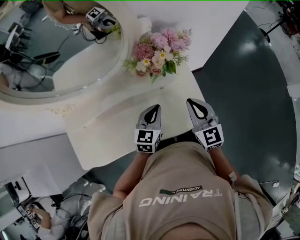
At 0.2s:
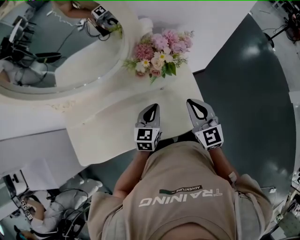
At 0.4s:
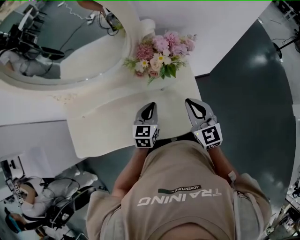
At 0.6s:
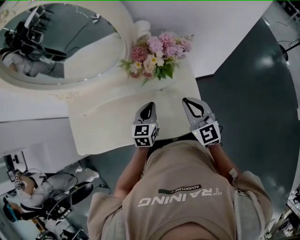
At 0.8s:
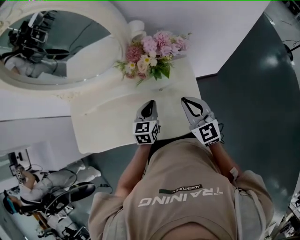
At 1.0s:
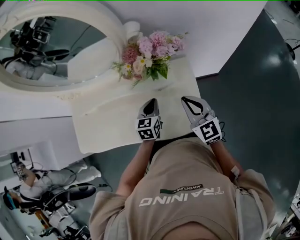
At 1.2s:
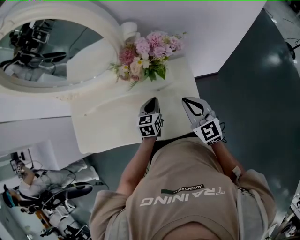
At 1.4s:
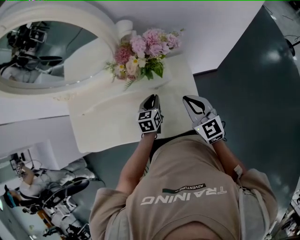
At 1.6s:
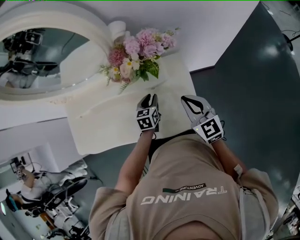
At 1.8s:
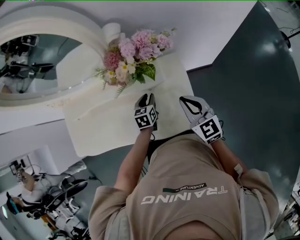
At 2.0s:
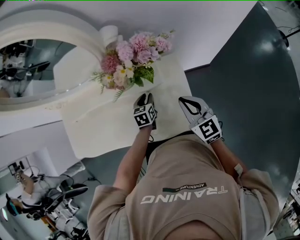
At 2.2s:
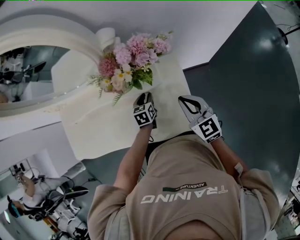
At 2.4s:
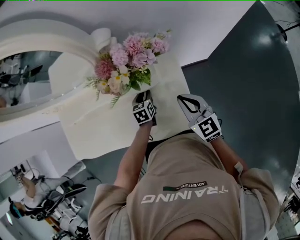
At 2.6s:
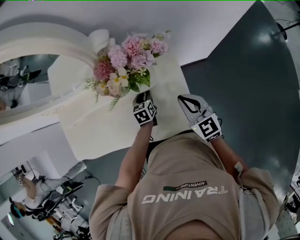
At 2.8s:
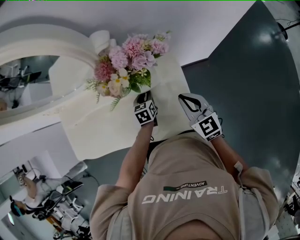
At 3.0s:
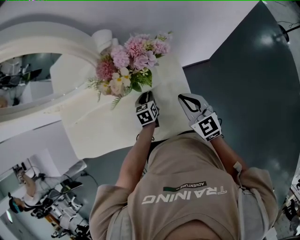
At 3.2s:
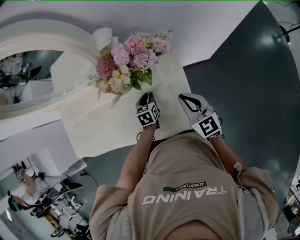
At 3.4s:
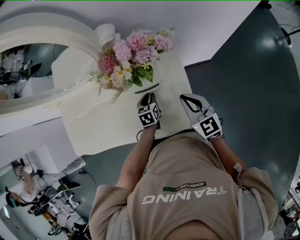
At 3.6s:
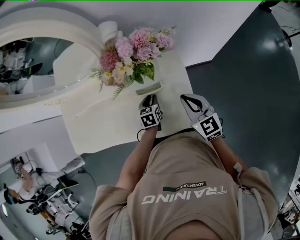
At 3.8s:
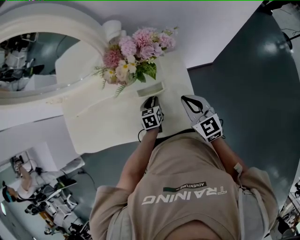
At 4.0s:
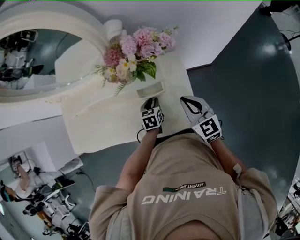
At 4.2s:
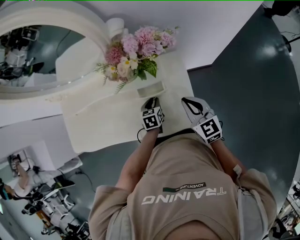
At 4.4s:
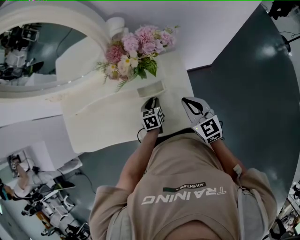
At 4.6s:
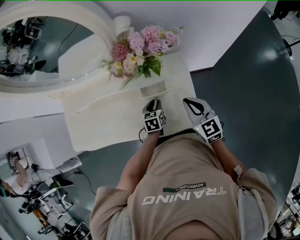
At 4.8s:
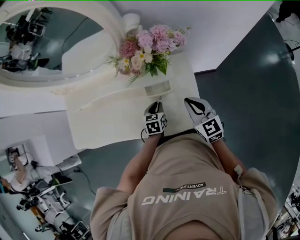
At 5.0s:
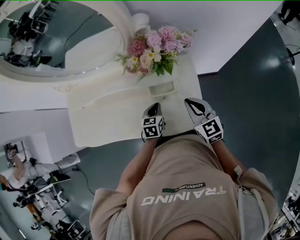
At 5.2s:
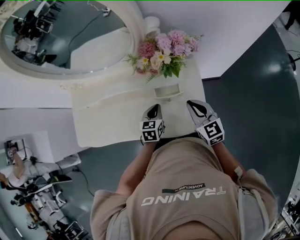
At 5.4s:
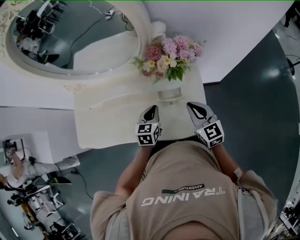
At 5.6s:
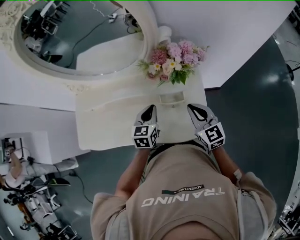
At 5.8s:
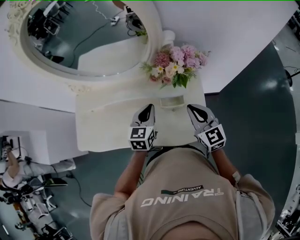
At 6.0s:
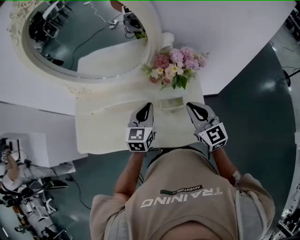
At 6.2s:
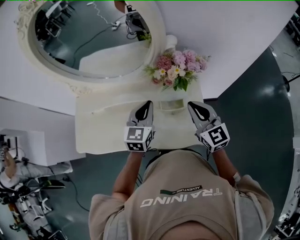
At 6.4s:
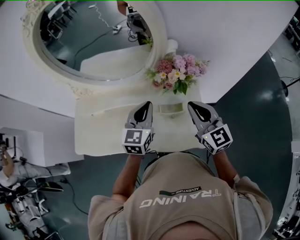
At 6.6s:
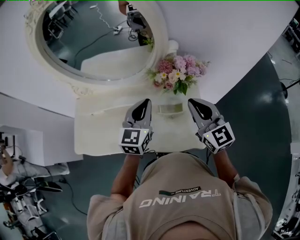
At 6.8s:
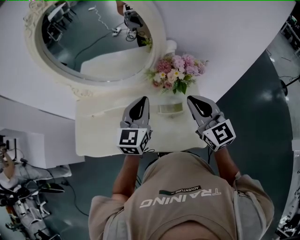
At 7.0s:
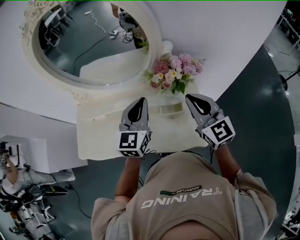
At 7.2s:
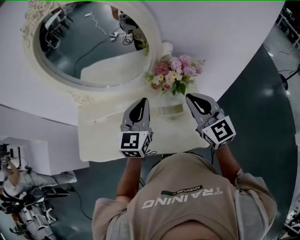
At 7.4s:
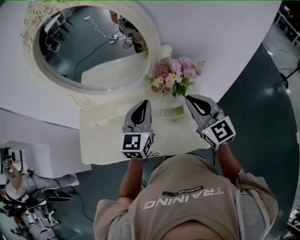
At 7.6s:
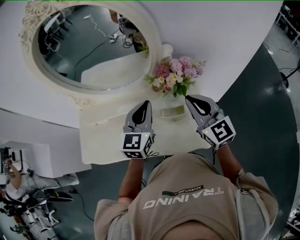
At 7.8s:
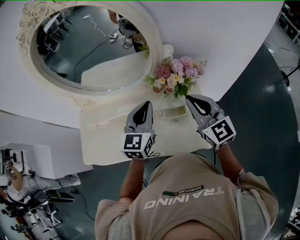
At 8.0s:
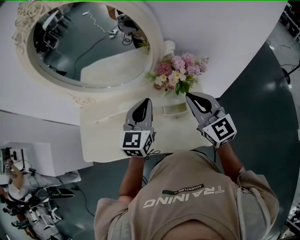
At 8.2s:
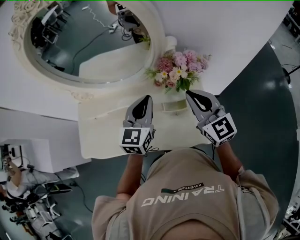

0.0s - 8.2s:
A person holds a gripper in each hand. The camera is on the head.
0.0s - 1.6s: The right gripper is displaced to the right by approximately 5 cm, while the left gripper heads downward and forward, covering roughly 15 cm, swivels about 30 degrees, and opens.
1.6s - 3.2s: The left gripper ends up about 5 cm from where it was.
3.2s - 5.0s: The left gripper goes approximately 5 cm backward, and closes; the right gripper changes place by about 5 cm.
5.0s - 6.6s: The left gripper goes approximately 30 cm upward, and angles its fingers upward, by approximately 30 degrees. The right gripper goes some 20 cm upward.
6.6s - 8.2s: There are only small adjustments of the grippers.

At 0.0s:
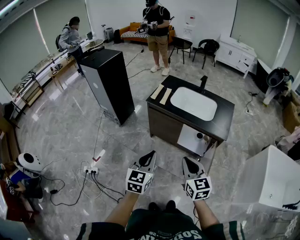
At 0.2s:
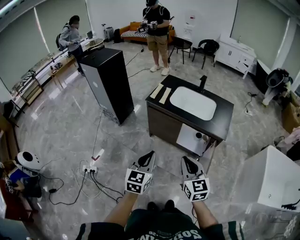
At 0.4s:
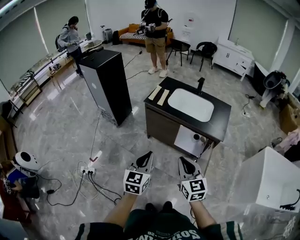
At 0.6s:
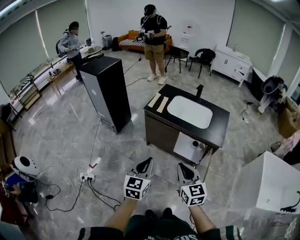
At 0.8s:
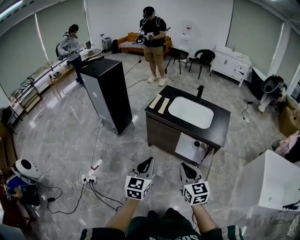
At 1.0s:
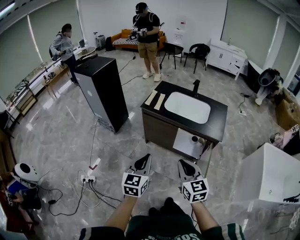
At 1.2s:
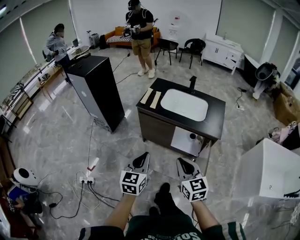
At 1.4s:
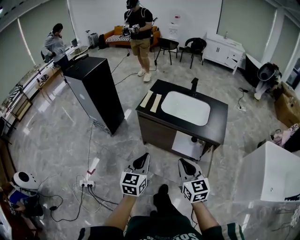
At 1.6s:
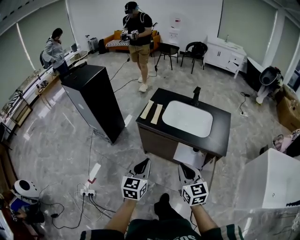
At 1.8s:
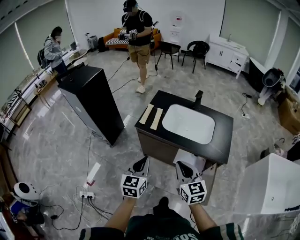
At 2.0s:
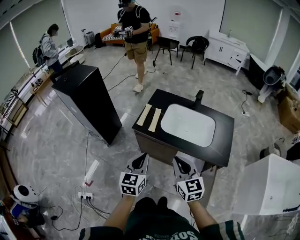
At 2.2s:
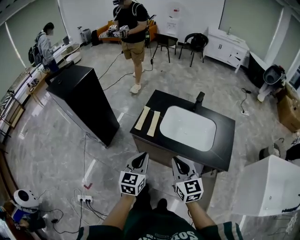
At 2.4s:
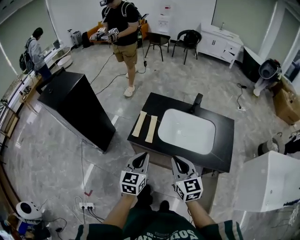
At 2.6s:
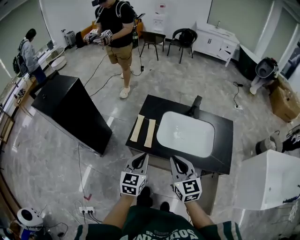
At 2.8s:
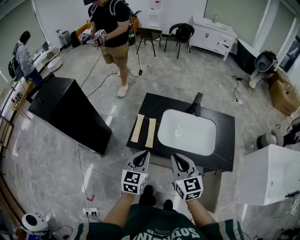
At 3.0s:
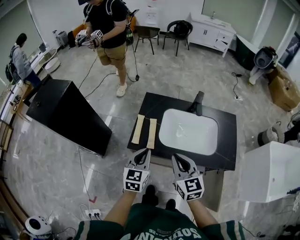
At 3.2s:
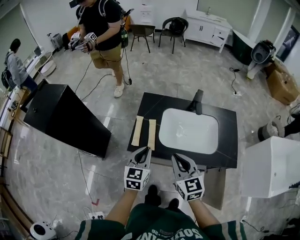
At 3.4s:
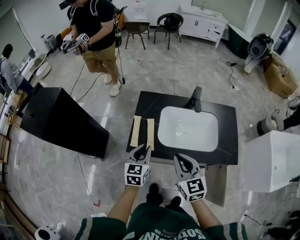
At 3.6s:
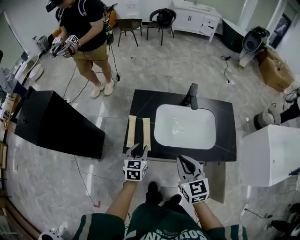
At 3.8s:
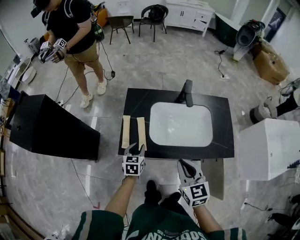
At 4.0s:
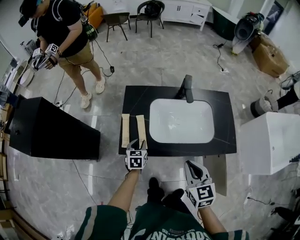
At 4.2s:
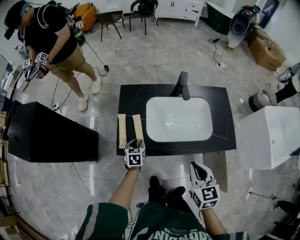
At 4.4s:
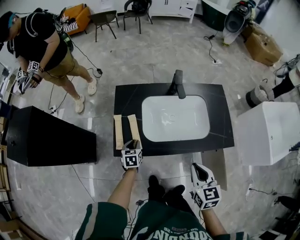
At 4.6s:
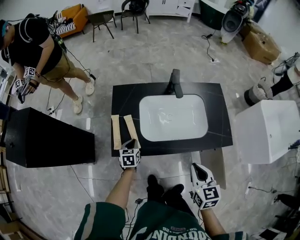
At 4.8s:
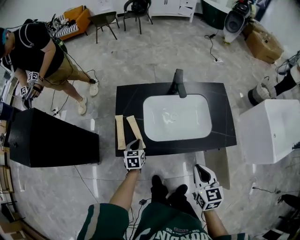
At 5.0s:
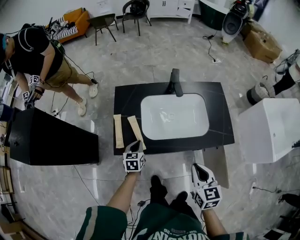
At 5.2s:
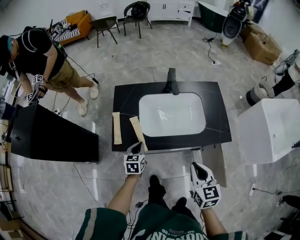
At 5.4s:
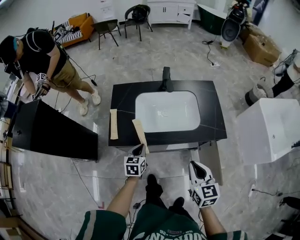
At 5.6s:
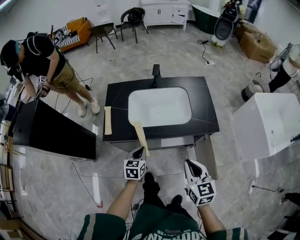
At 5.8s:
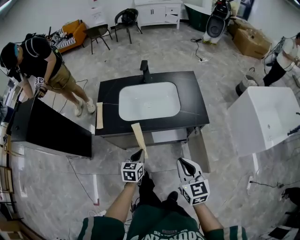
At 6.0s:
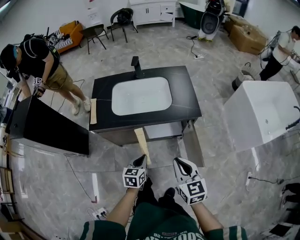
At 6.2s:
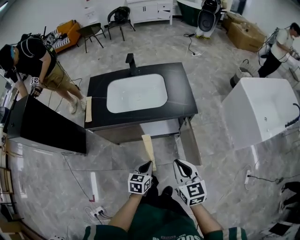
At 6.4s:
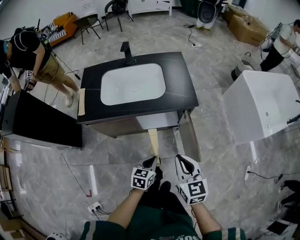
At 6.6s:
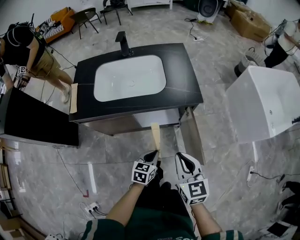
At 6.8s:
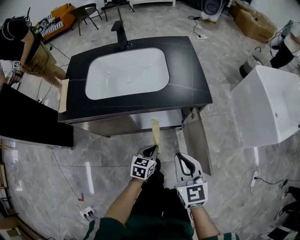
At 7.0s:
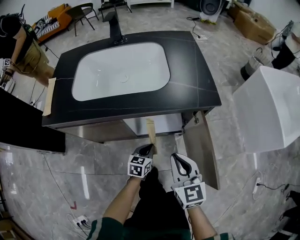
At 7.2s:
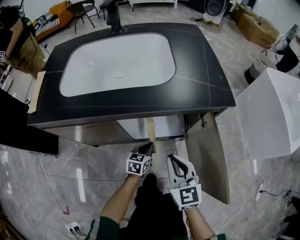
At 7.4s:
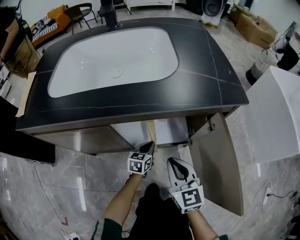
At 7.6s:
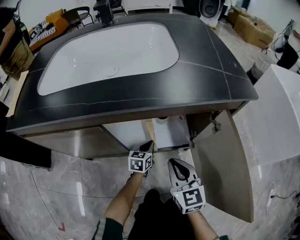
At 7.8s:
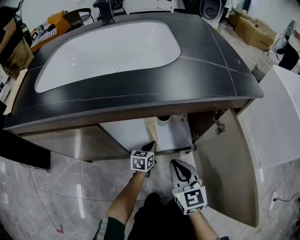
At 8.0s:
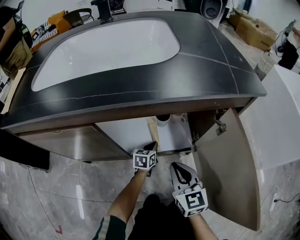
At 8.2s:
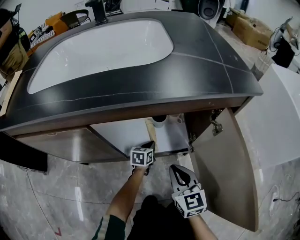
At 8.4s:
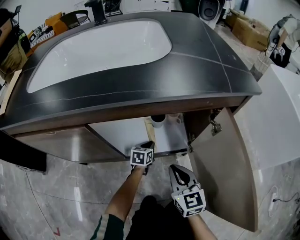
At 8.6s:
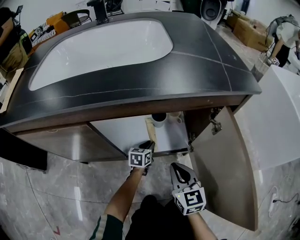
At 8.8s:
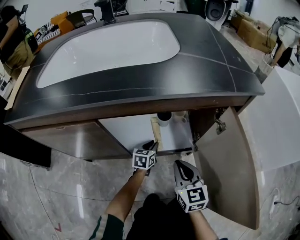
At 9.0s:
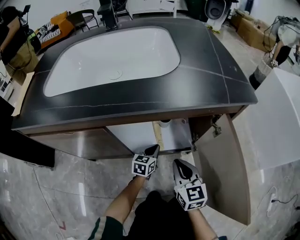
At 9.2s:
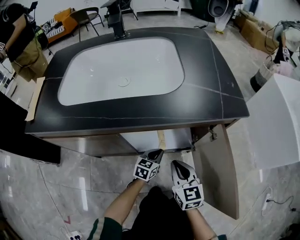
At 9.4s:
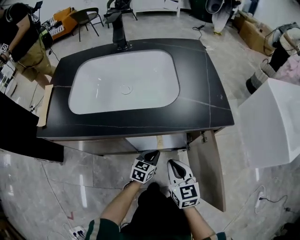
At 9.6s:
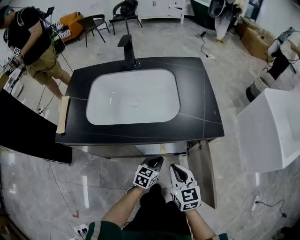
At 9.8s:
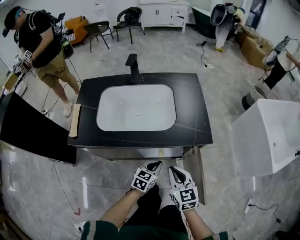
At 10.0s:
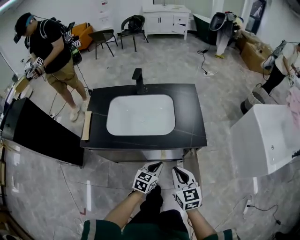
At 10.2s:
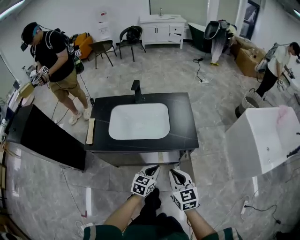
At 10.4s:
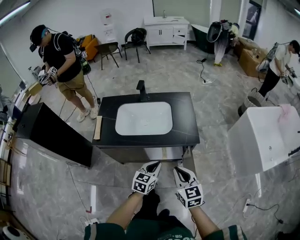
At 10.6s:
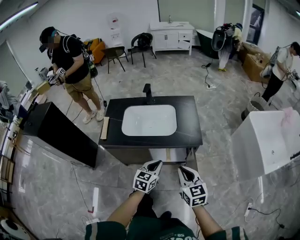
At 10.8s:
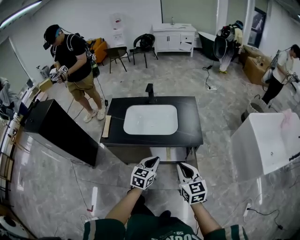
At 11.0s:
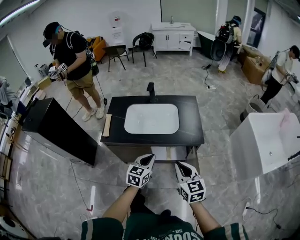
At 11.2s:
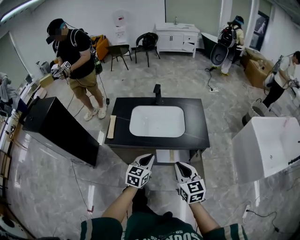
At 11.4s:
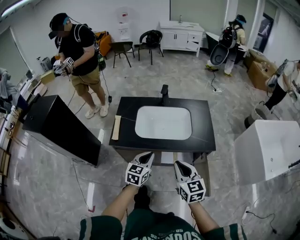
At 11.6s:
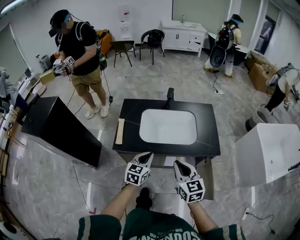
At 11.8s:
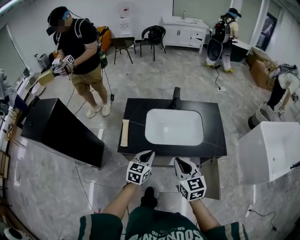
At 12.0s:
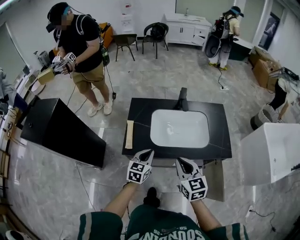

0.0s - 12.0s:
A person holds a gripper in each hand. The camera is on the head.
0.0s - 1.6s: The two grippers go about 15 cm forward.
1.6s - 3.0s: The two grippers go about 35 cm forward.
3.0s - 4.4s: The left gripper moves downward and forward, approximately 30 cm, changes its angle by approximately 30 degrees, and opens its fingers; the right gripper heads to the right and downward, covering some 15 cm, and rotates some 30 degrees.
4.4s - 6.0s: The right gripper travels backward and to the right by some 30 cm, while the left gripper travels backward and to the right by roughly 40 cm, and closes up.
6.0s - 7.6s: The right gripper is displaced downward by roughly 50 cm; the left gripper shifts about 60 cm downward and forward.
7.6s - 9.0s: The left gripper moves roughly 10 cm downward and comes back.
9.0s - 10.4s: Both grippers move upward, some 60 cm.
10.4s - 12.0s: The two grippers go about 35 cm to the left and forward.

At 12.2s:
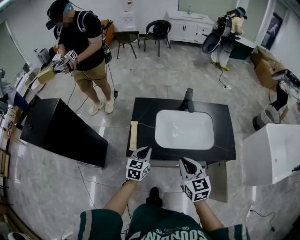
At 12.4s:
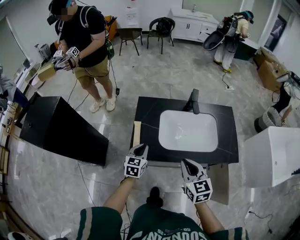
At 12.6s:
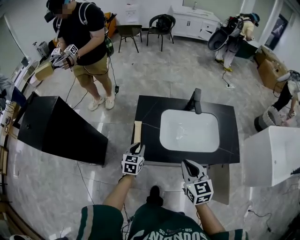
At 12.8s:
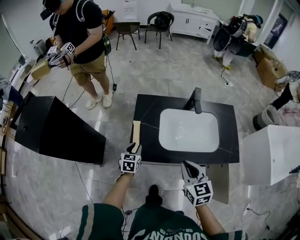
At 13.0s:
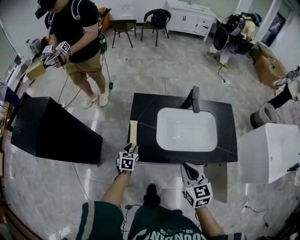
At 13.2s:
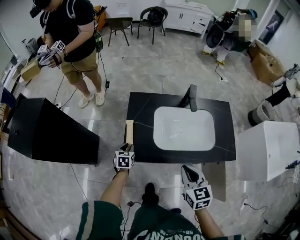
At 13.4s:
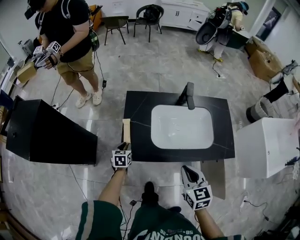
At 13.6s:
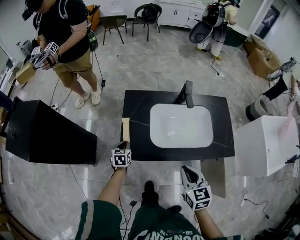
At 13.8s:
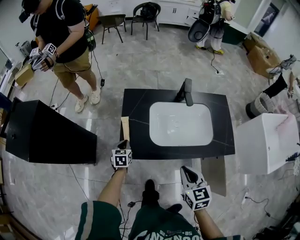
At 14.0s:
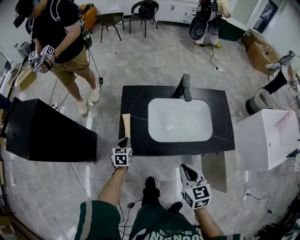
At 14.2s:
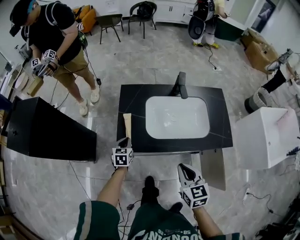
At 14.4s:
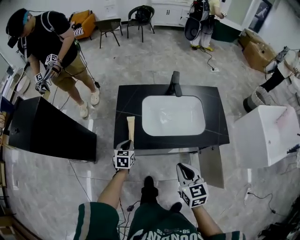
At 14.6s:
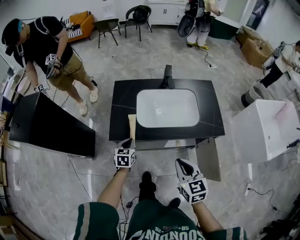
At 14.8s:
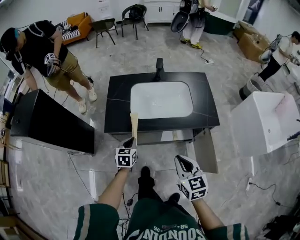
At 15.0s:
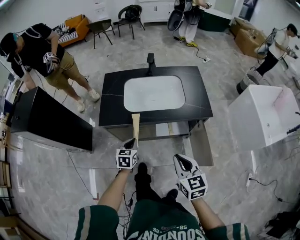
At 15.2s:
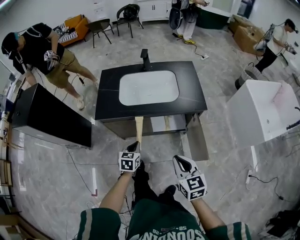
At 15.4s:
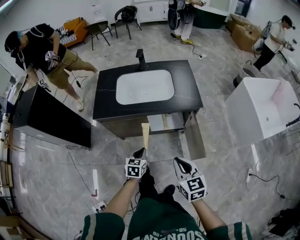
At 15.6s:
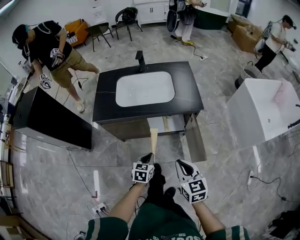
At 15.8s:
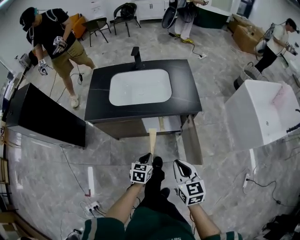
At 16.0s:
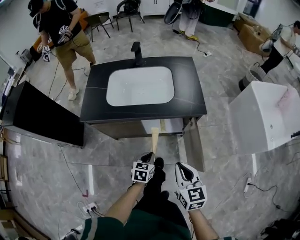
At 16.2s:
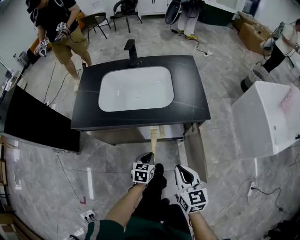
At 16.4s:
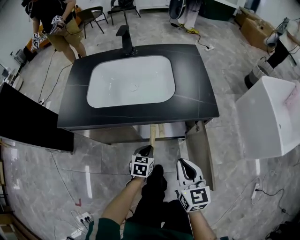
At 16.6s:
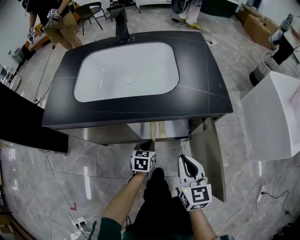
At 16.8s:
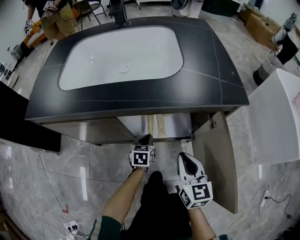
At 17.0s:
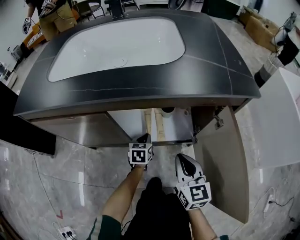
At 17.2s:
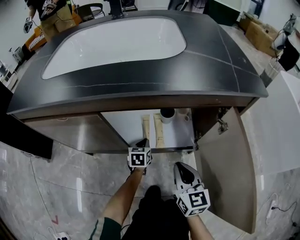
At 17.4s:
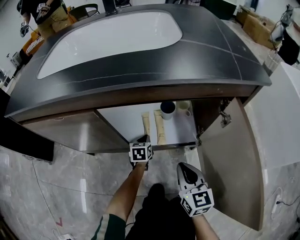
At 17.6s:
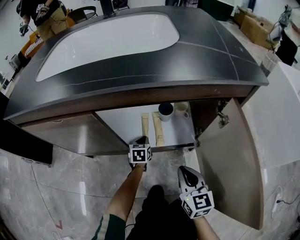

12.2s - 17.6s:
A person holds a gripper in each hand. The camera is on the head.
12.2s - 13.6s: The left gripper goes some 20 cm downward, to the left and forward, and changes its angle by roughly 20 degrees; the right gripper travels downward by about 5 cm.
13.6s - 15.0s: Both grippers travel together backward and to the right, roughly 30 cm.
15.0s - 16.2s: The right gripper shifts some 20 cm downward and to the right, while the left gripper moves to the right and downward, some 30 cm.
16.2s - 17.6s: The left gripper moves downward and forward, approximately 50 cm, while the right gripper is displaced downward by some 40 cm.
